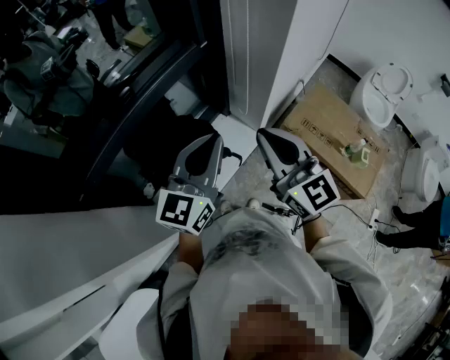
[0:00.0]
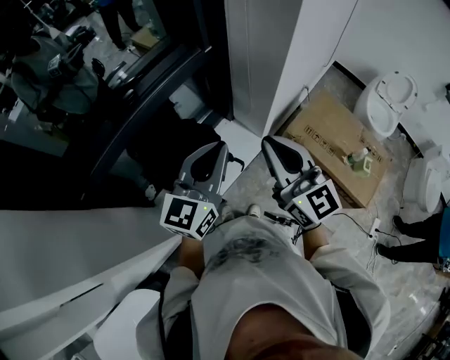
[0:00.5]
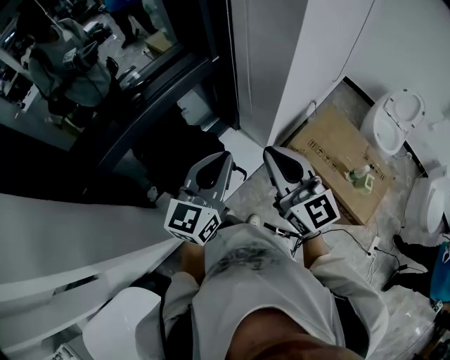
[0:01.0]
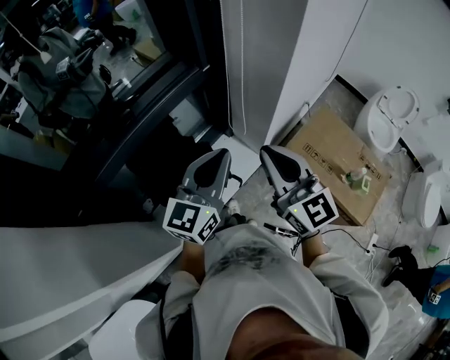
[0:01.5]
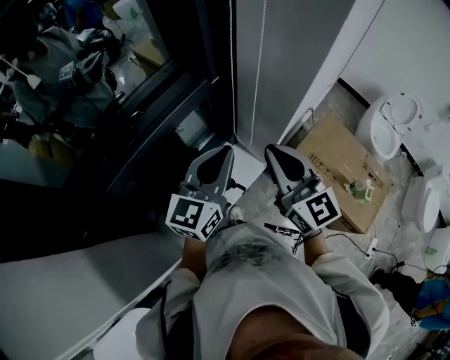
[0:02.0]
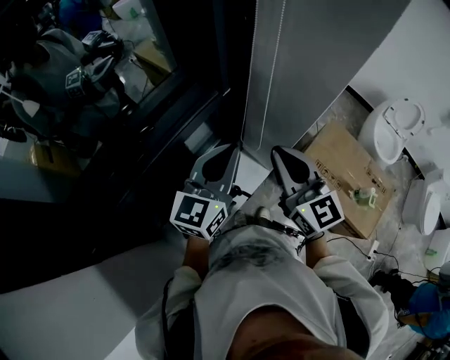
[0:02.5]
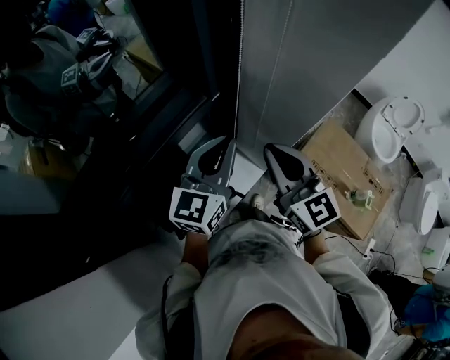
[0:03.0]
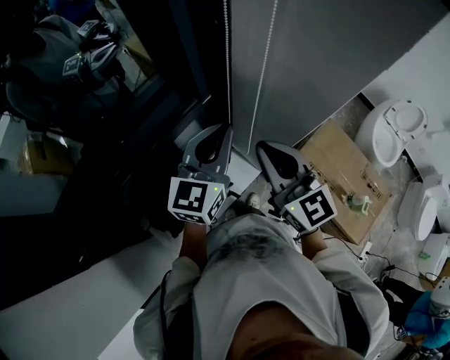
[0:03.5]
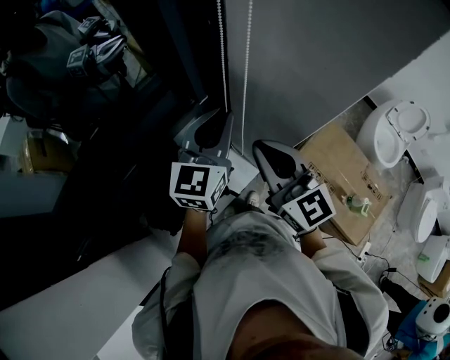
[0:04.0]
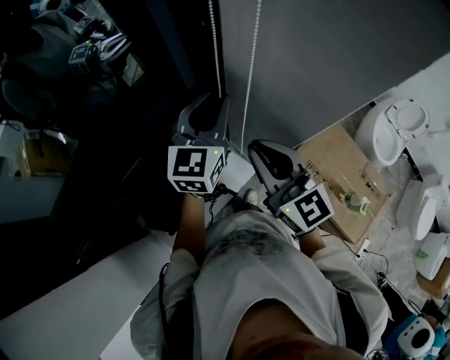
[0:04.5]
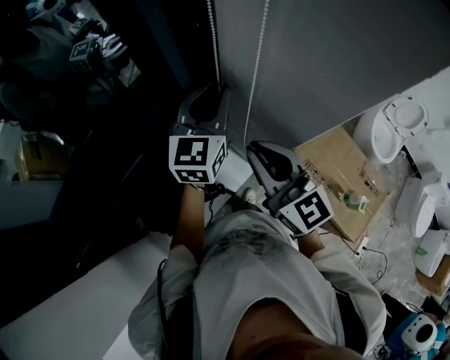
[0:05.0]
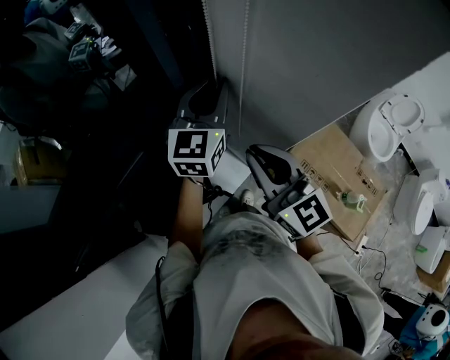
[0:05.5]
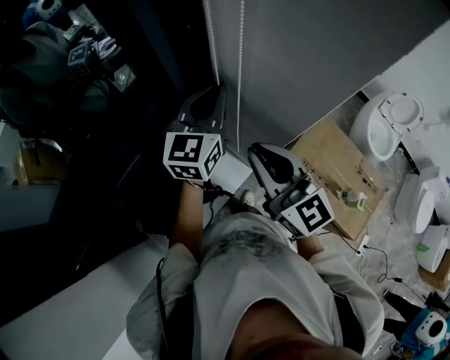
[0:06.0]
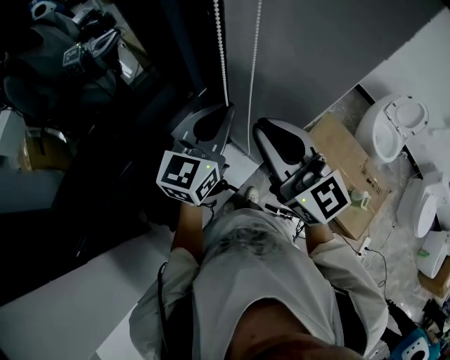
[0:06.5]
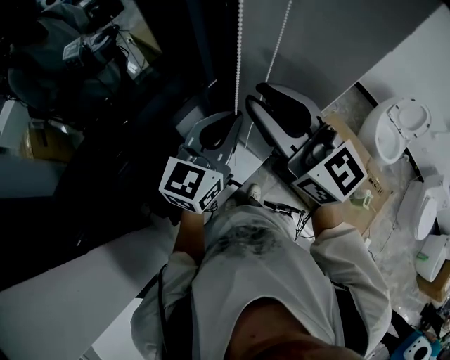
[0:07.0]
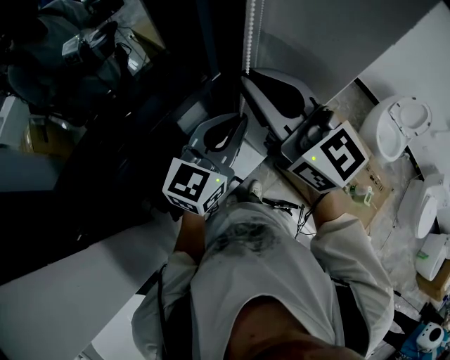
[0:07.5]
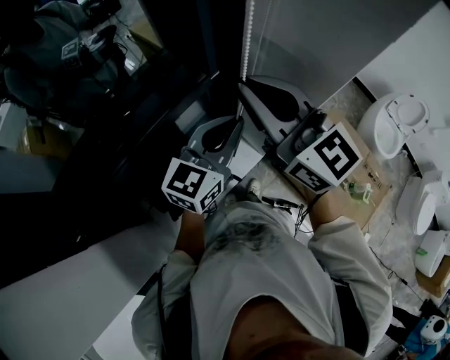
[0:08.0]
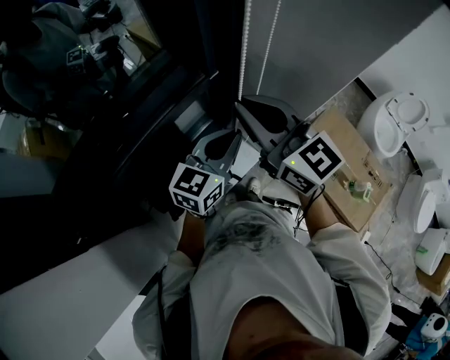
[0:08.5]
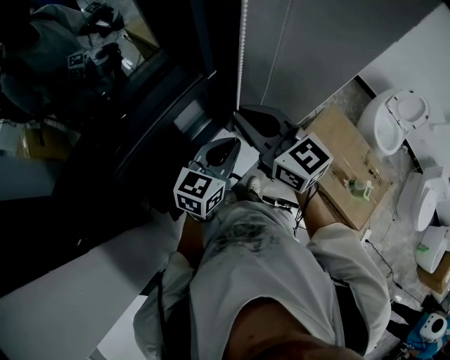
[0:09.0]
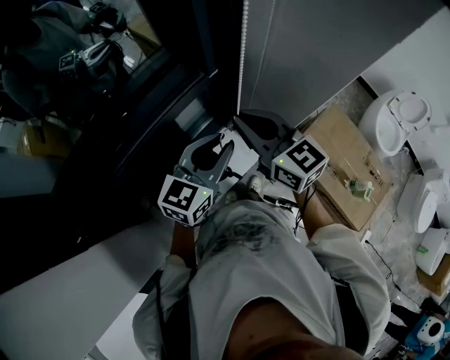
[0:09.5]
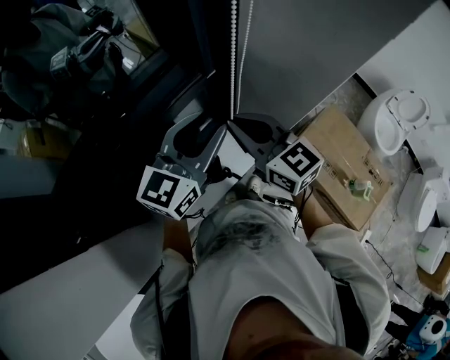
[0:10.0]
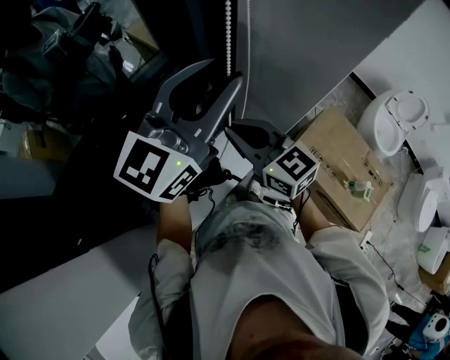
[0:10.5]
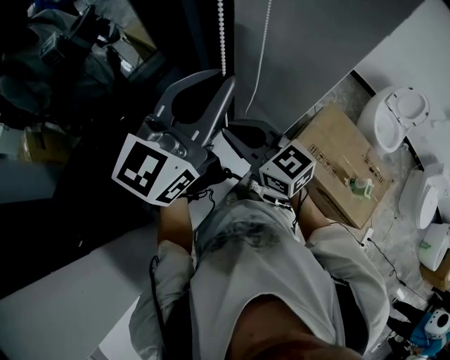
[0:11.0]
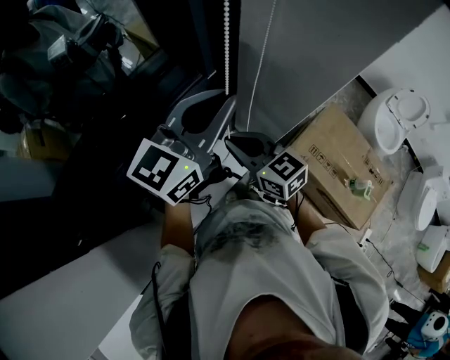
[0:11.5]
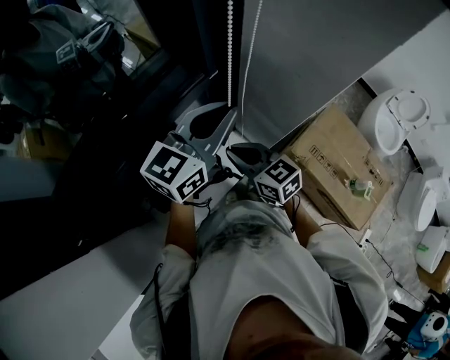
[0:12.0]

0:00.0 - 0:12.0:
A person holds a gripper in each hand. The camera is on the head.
0:00.0 - 0:02.0: The two grippers go some 15 cm forward.
0:02.0 - 0:04.0: The right gripper heads forward, covering approximately 10 cm. Meanwhile the left gripper moves forward, some 20 cm.
0:04.0 - 0:06.0: The left gripper is displaced forward by some 5 cm.
0:06.0 - 0:08.0: The right gripper shifts about 15 cm upward and to the left, while the left gripper goes about 15 cm backward.
0:08.0 - 0:10.0: The left gripper reaches some 10 cm downward, then returns, and opens its fingers. The right gripper is displaced downward by about 15 cm.
0:10.0 - 0:12.0: The right gripper travels downward by about 10 cm; the left gripper travels upward and back again, about 15 cm each way, and closes.

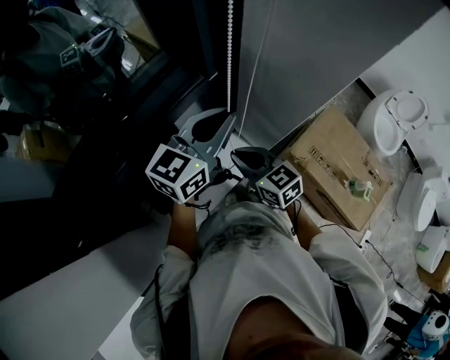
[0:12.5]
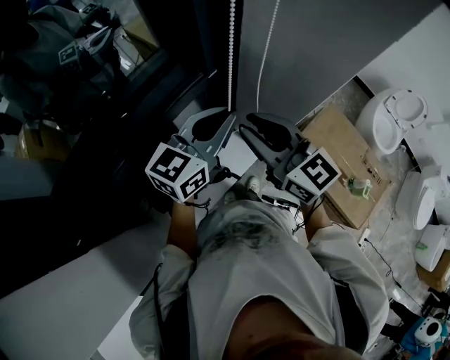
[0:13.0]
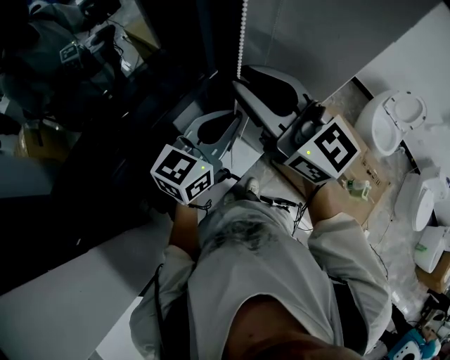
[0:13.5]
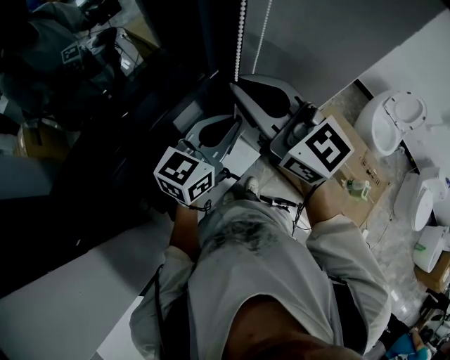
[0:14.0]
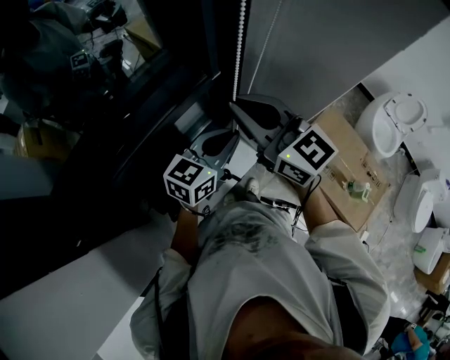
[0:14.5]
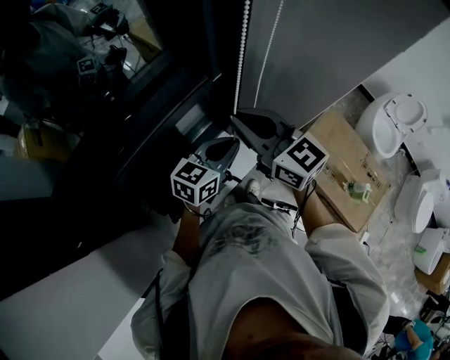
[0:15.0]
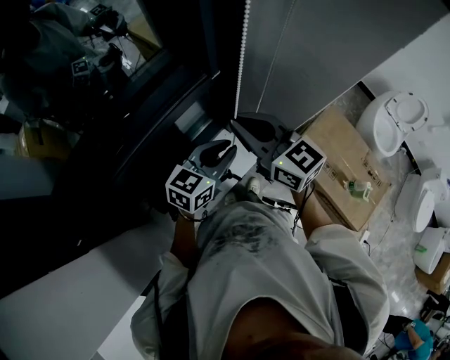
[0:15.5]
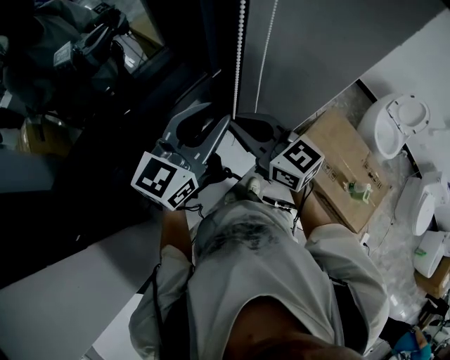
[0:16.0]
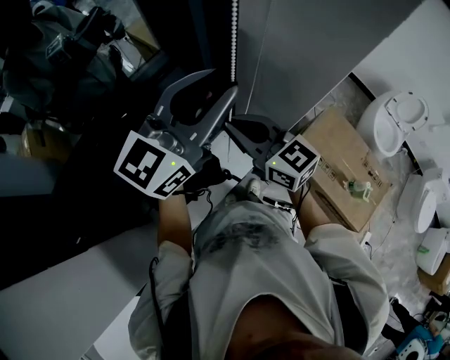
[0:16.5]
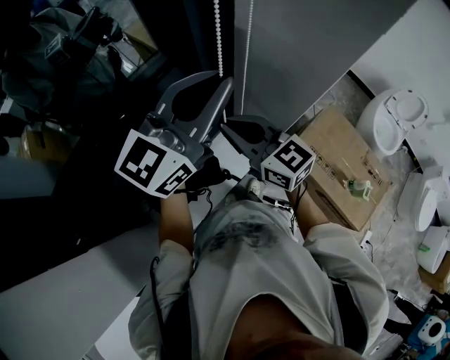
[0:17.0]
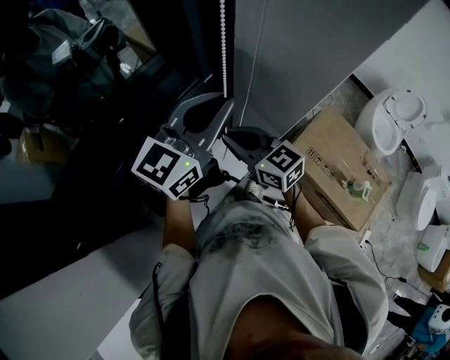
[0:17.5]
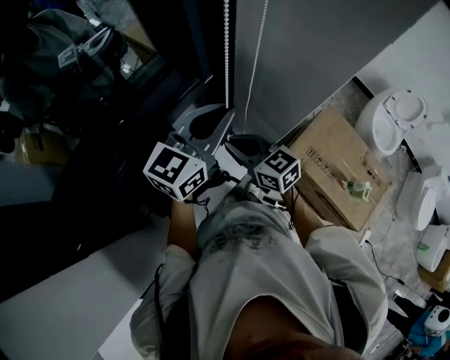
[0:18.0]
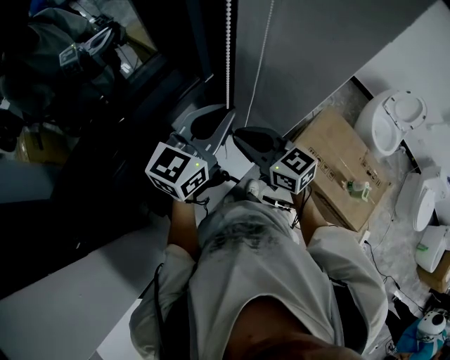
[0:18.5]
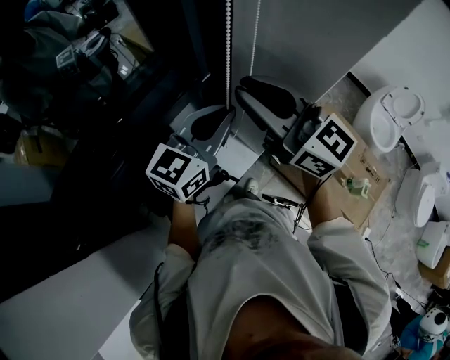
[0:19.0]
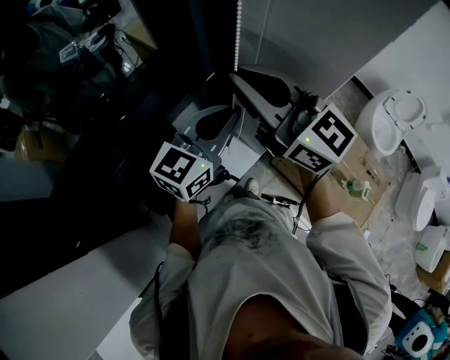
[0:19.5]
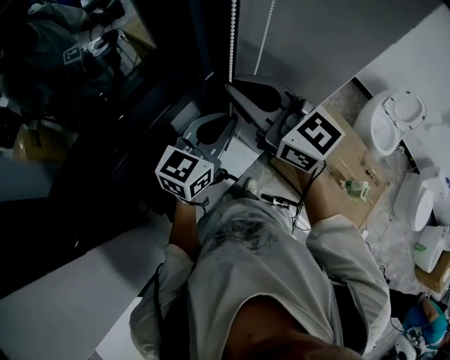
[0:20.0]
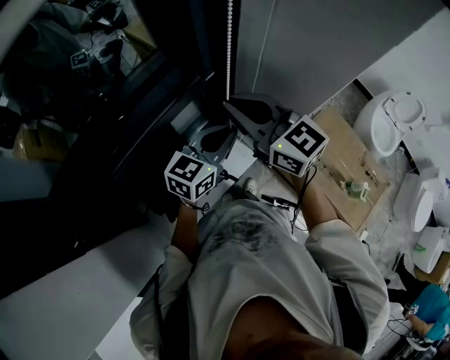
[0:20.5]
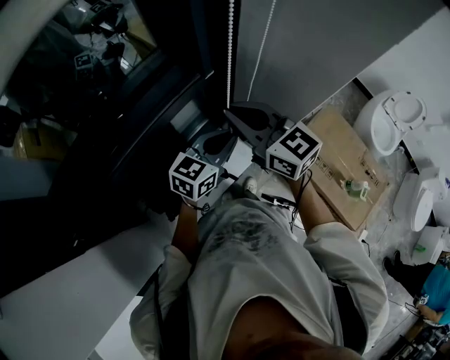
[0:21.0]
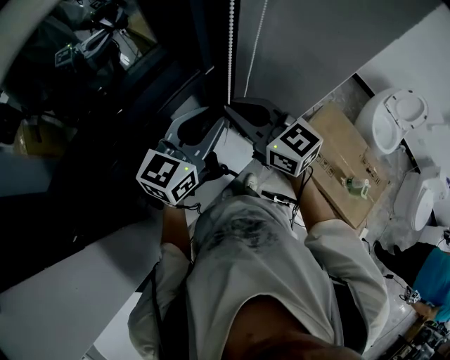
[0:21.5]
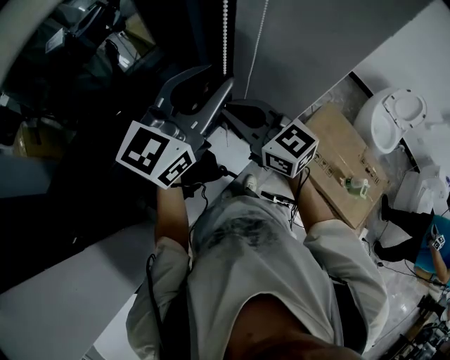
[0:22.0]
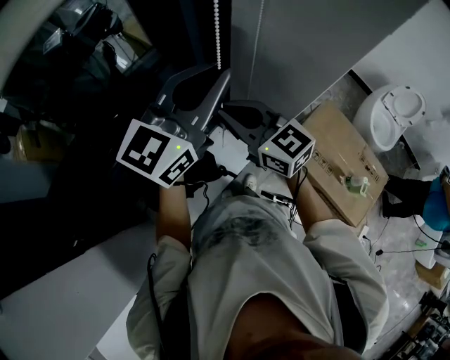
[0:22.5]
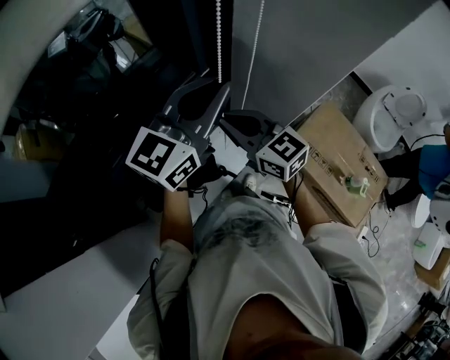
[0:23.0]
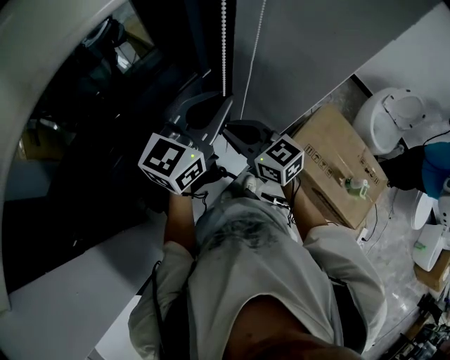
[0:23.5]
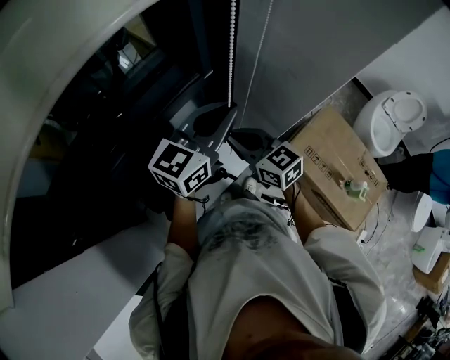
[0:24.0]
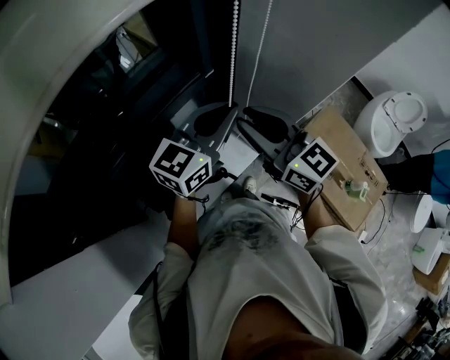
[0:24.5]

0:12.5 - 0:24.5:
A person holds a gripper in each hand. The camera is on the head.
0:12.5 - 0:14.5: The left gripper goes roughly 10 cm downward. The right gripper travels upward by roughly 20 cm, and changes its angle by roughly 30 degrees.
0:14.5 - 0:16.5: The right gripper travels downward by approximately 5 cm; the left gripper moves upward, approximately 20 cm, rotates some 30 degrees, and opens.
0:16.5 - 0:18.5: The left gripper shifts some 10 cm downward, and closes its fingers. Meanwhile the right gripper shifts approximately 5 cm downward.
0:18.5 - 0:20.5: The right gripper is displaced upward by roughly 10 cm. The left gripper goes about 10 cm downward.
0:20.5 - 0:22.5: The left gripper shifts approximately 20 cm upward, swivels about 20 degrees, and opens and closes again.
0:22.5 - 0:24.5: The right gripper travels downward and back again, some 10 cm each way. Meanwhile the left gripper goes roughly 10 cm downward.

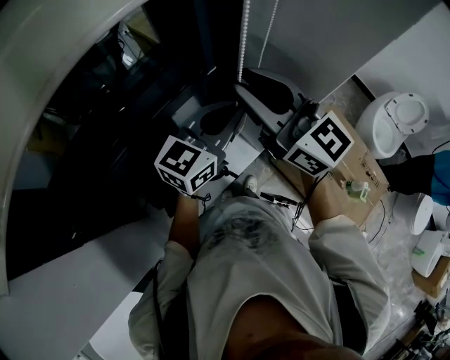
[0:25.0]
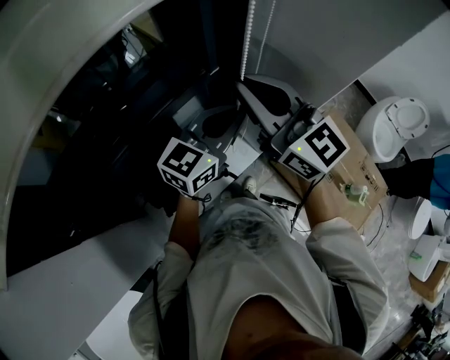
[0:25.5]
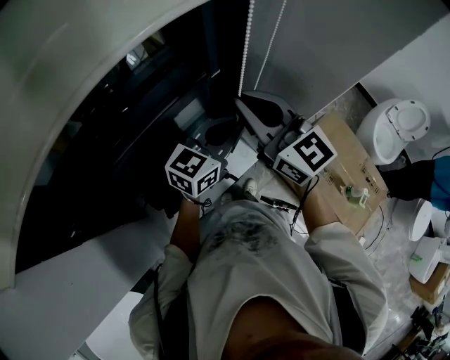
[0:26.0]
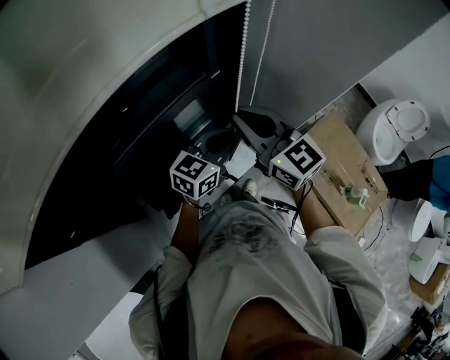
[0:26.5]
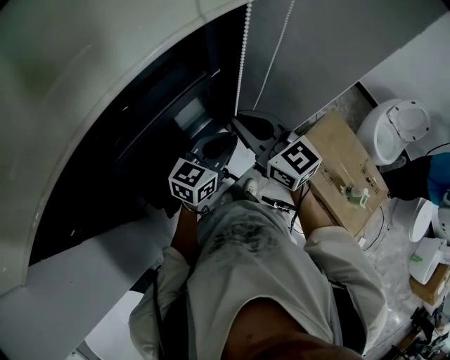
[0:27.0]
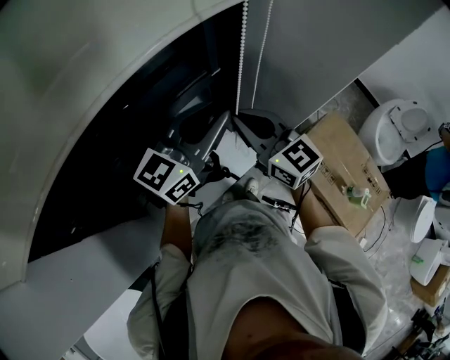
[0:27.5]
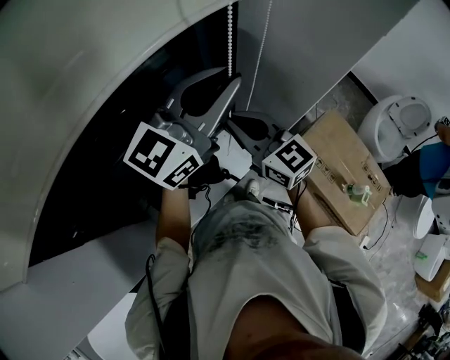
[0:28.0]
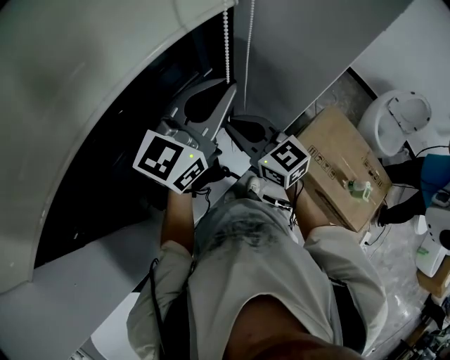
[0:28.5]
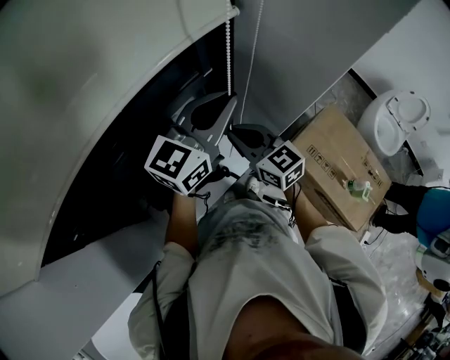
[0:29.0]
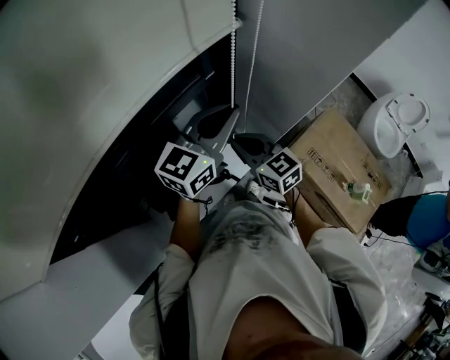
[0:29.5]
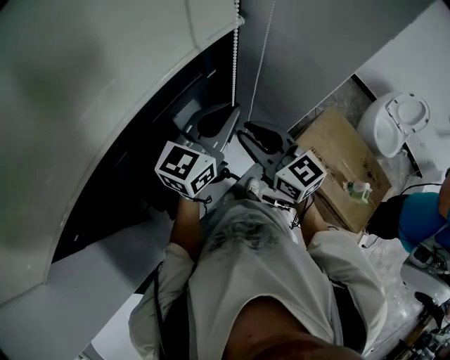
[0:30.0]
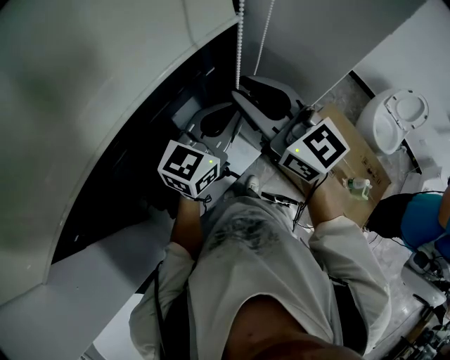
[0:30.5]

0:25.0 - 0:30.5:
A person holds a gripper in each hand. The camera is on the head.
0:25.0 - 0:27.0: The two grippers go about 10 cm downward.
0:27.0 - 0:28.5: The left gripper moves upward, about 20 cm, and changes its angle by roughly 20 degrees.
0:28.5 - 0:30.5: The left gripper goes some 10 cm downward; the right gripper heads upward, covering roughly 15 cm.
